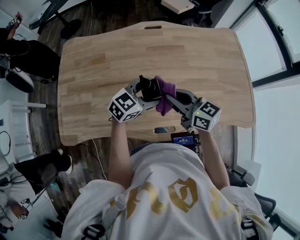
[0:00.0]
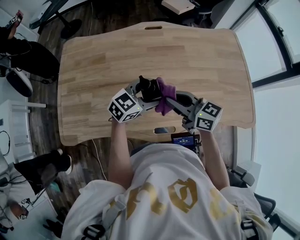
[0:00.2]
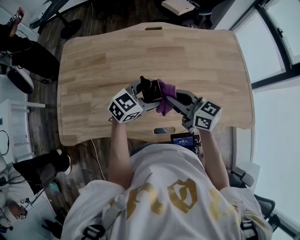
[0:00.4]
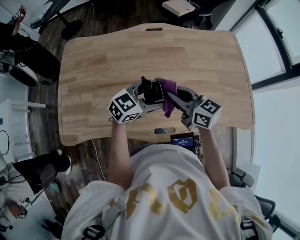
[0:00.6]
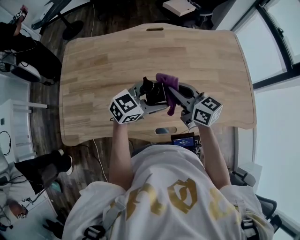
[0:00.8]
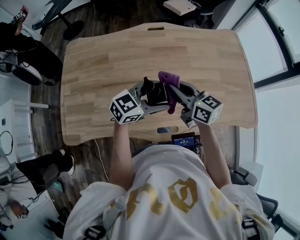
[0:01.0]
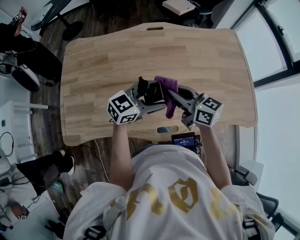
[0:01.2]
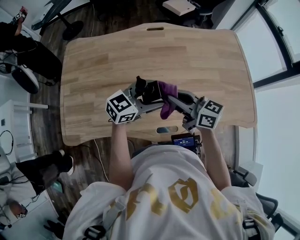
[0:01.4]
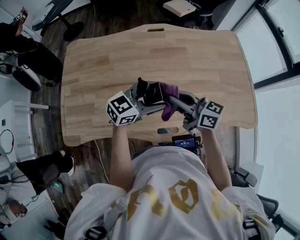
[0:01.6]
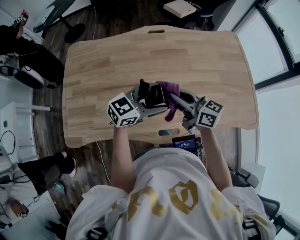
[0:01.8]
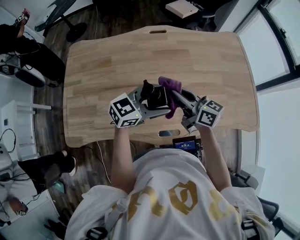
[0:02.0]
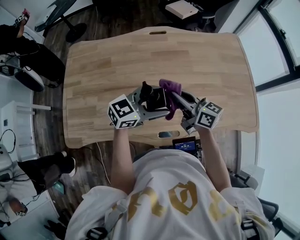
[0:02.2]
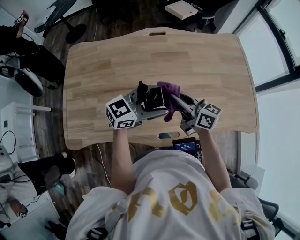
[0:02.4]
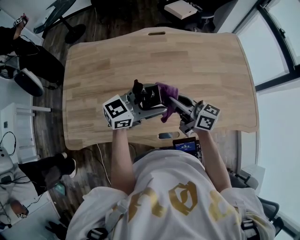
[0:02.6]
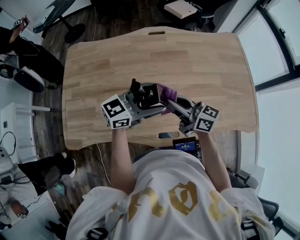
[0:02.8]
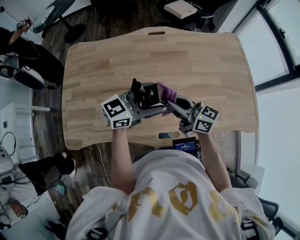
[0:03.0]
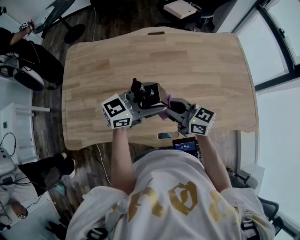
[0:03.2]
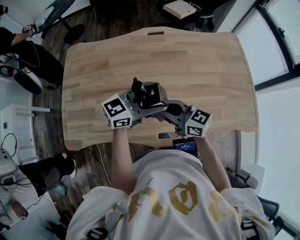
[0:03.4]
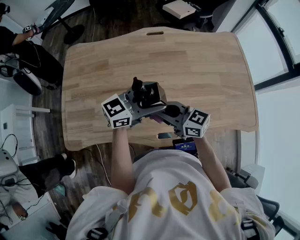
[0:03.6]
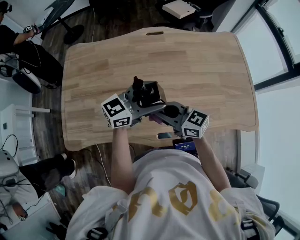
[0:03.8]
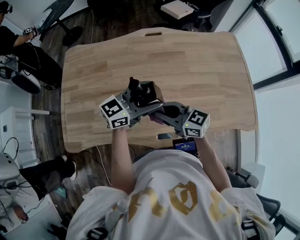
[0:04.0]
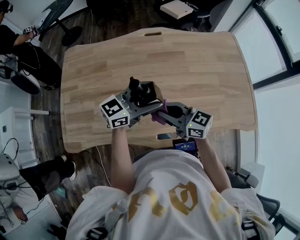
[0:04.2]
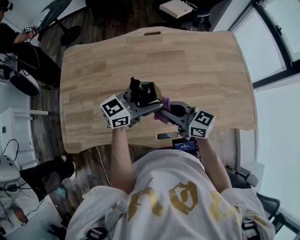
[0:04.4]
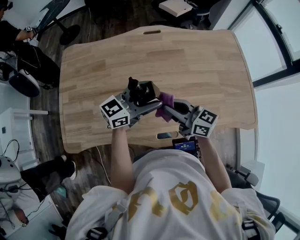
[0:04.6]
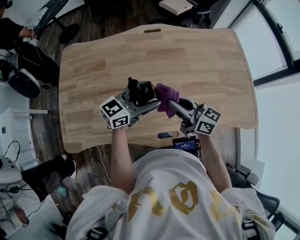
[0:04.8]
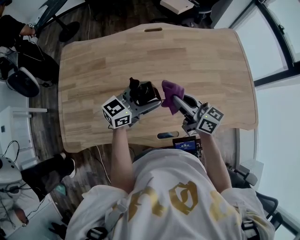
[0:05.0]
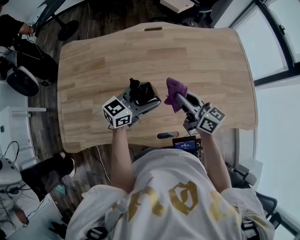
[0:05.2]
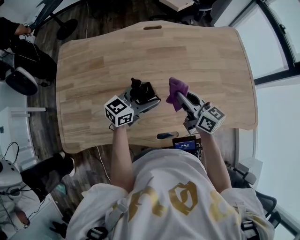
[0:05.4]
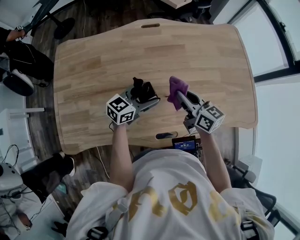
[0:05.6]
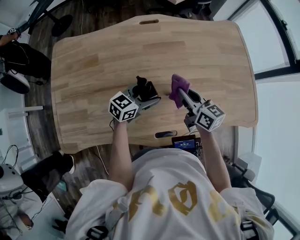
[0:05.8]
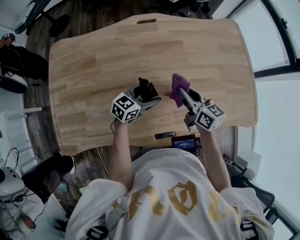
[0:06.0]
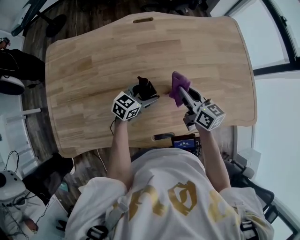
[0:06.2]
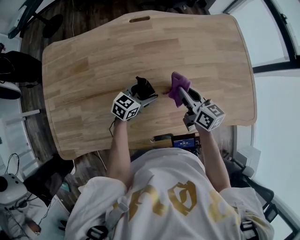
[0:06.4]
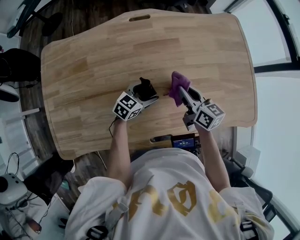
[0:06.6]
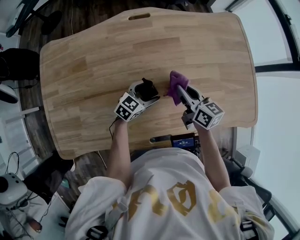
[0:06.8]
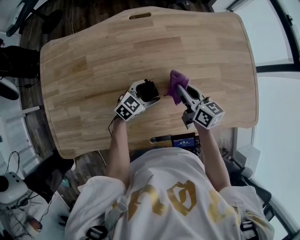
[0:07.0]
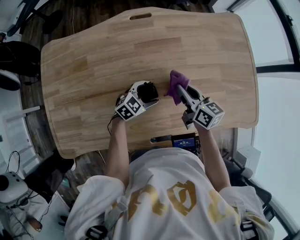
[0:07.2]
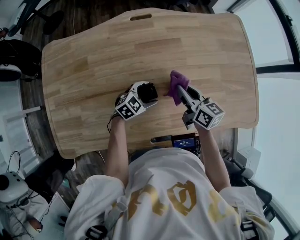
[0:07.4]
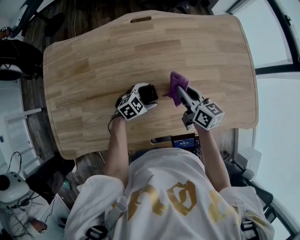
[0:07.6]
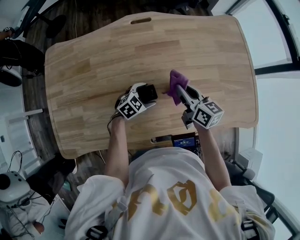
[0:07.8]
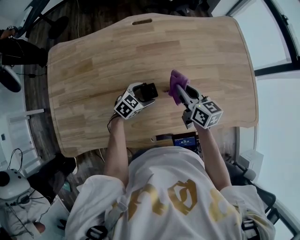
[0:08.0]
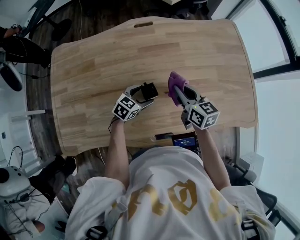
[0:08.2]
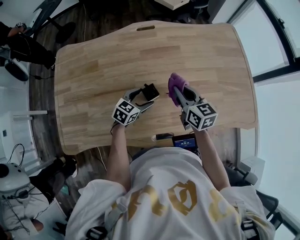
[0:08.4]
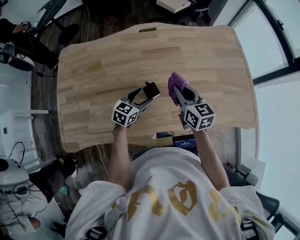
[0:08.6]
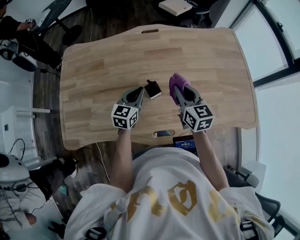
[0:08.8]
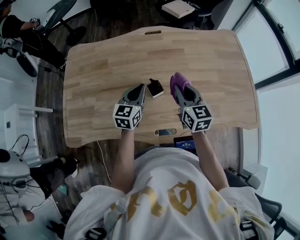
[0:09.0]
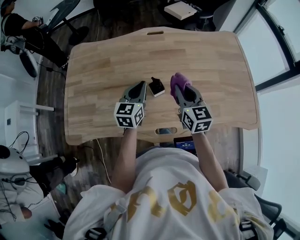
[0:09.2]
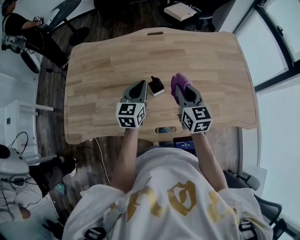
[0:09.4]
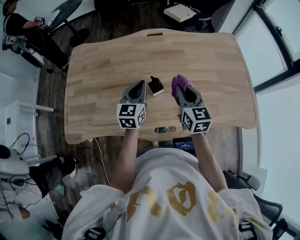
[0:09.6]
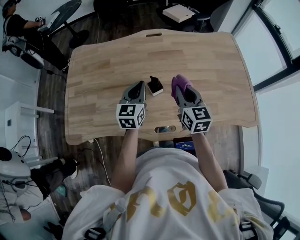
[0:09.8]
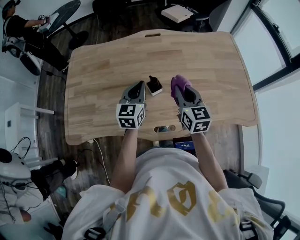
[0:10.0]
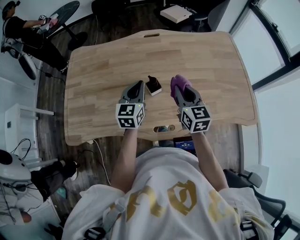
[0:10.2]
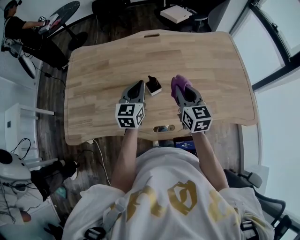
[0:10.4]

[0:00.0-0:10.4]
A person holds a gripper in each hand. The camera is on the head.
0:00.0 to 0:01.4: The grippers move only a little.
0:01.4 to 0:03.0: There are only small adjustments of the grippers.
0:04.4 to 0:06.0: The left gripper moves downward, roughly 15 cm, and rotates about 20 degrees. Meanwhile the right gripper ends up approximately 15 cm from where it was, and changes its angle by approximately 30 degrees.
0:06.0 to 0:07.4: The left gripper shifts approximately 10 cm downward, and changes its angle by roughly 30 degrees.
0:07.4 to 0:09.0: The right gripper heads upward and backward, covering some 10 cm, and rotates roughly 30 degrees. The left gripper moves upward and to the left, roughly 20 cm, rotates approximately 50 degrees, and closes up.
0:09.0 to 0:10.4: The left gripper shifts by approximately 5 cm.

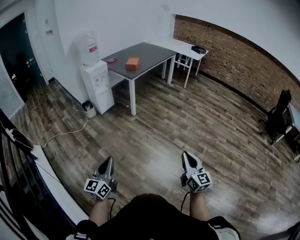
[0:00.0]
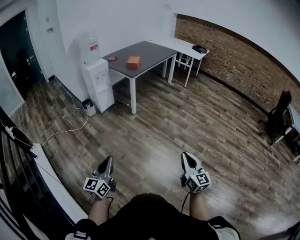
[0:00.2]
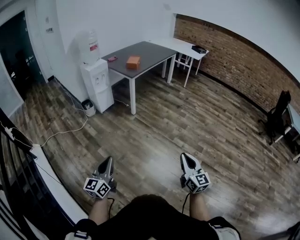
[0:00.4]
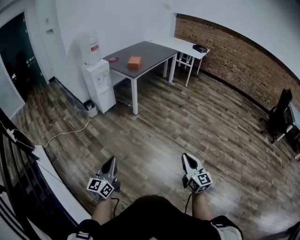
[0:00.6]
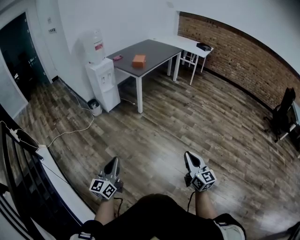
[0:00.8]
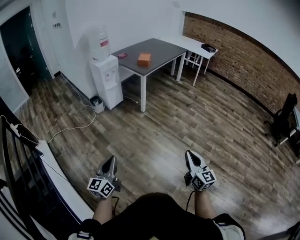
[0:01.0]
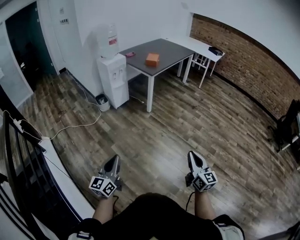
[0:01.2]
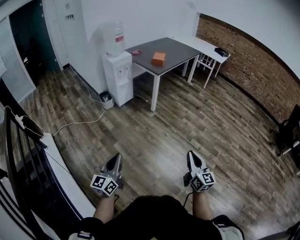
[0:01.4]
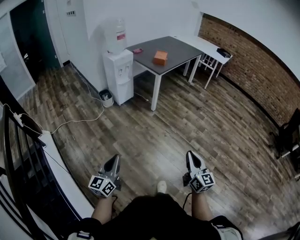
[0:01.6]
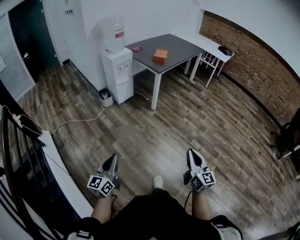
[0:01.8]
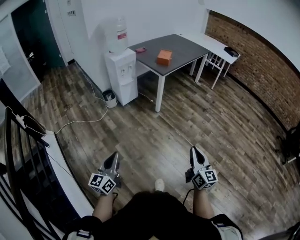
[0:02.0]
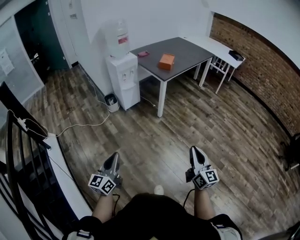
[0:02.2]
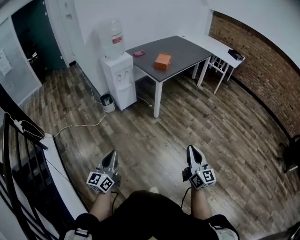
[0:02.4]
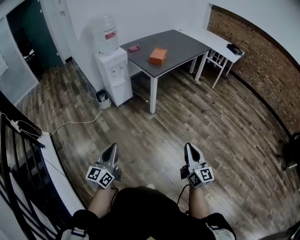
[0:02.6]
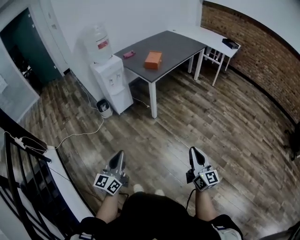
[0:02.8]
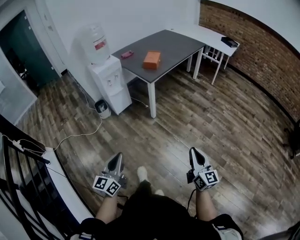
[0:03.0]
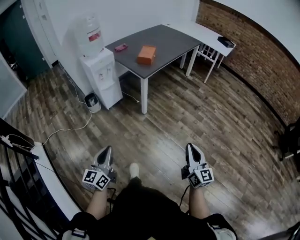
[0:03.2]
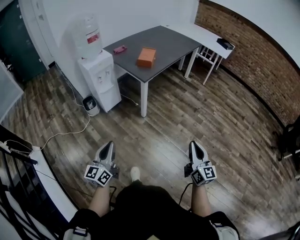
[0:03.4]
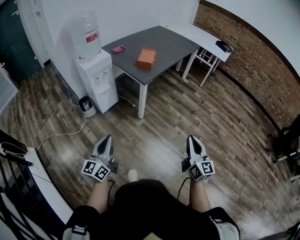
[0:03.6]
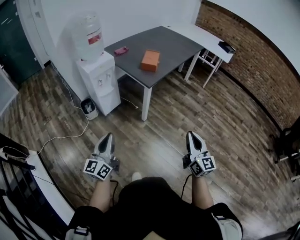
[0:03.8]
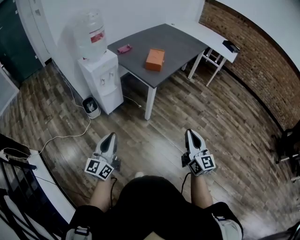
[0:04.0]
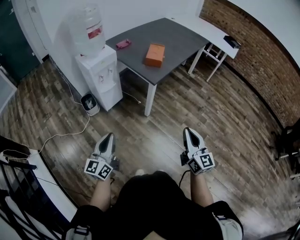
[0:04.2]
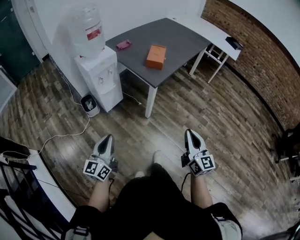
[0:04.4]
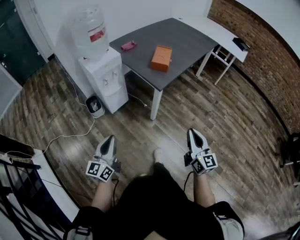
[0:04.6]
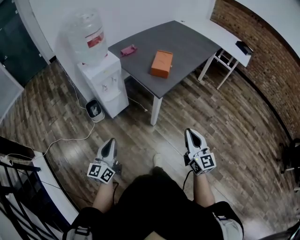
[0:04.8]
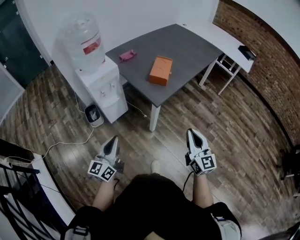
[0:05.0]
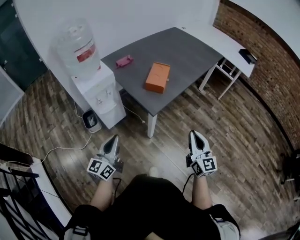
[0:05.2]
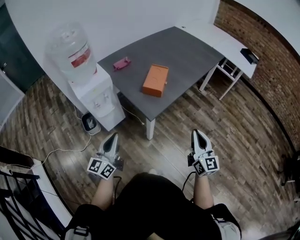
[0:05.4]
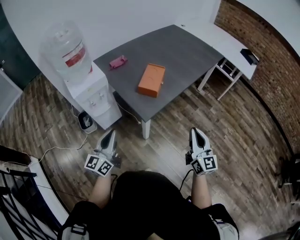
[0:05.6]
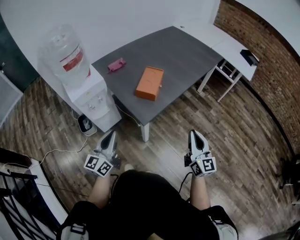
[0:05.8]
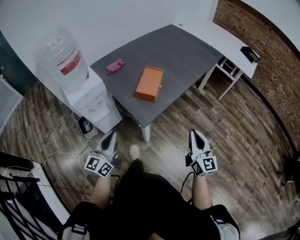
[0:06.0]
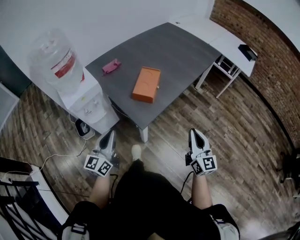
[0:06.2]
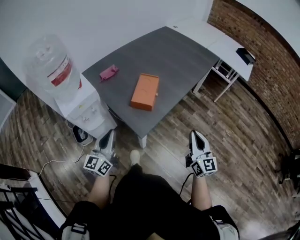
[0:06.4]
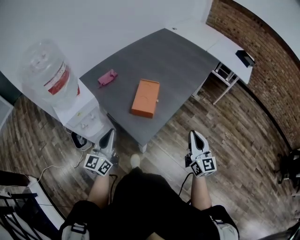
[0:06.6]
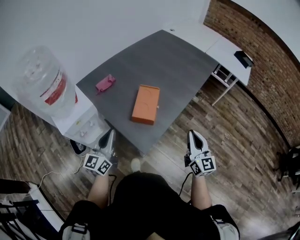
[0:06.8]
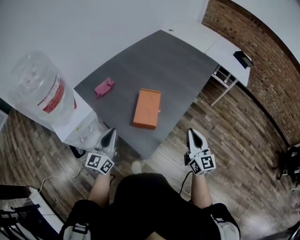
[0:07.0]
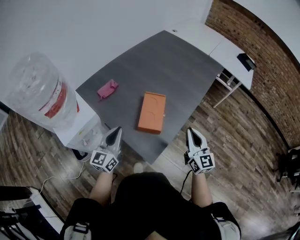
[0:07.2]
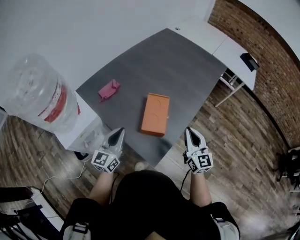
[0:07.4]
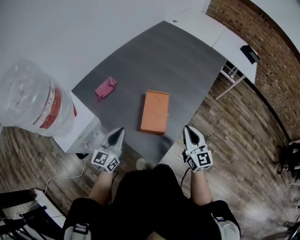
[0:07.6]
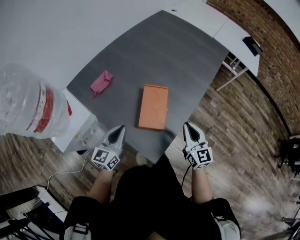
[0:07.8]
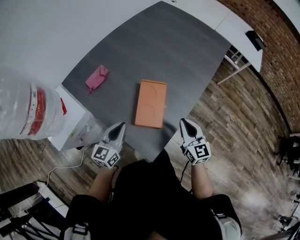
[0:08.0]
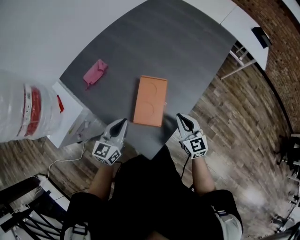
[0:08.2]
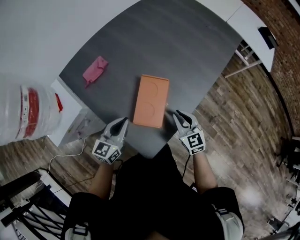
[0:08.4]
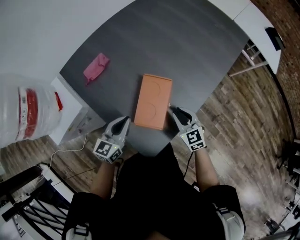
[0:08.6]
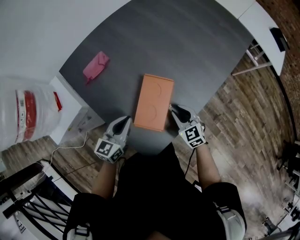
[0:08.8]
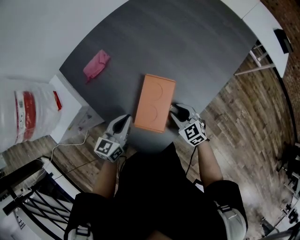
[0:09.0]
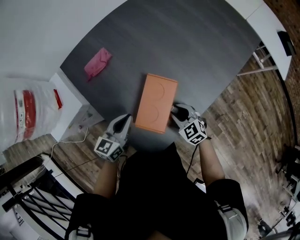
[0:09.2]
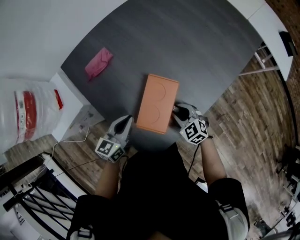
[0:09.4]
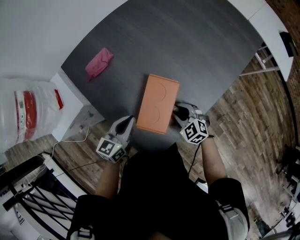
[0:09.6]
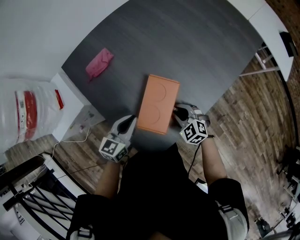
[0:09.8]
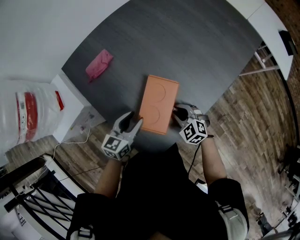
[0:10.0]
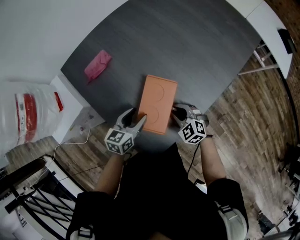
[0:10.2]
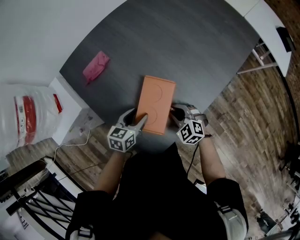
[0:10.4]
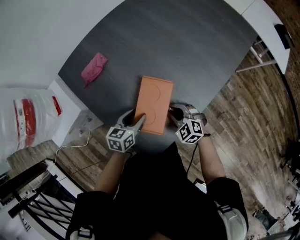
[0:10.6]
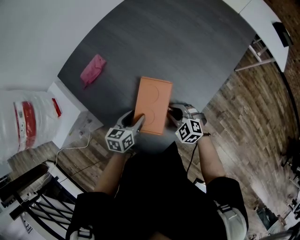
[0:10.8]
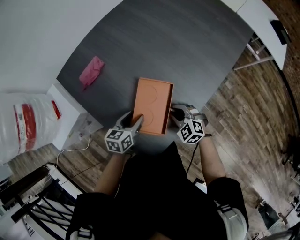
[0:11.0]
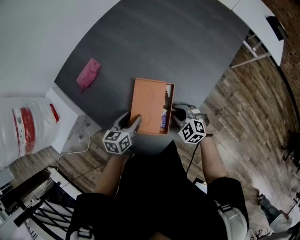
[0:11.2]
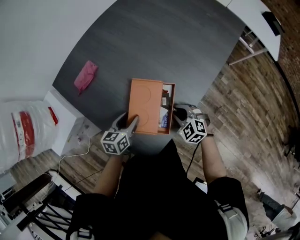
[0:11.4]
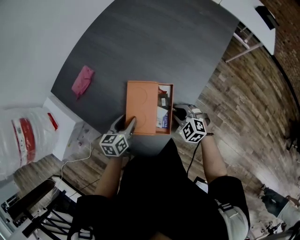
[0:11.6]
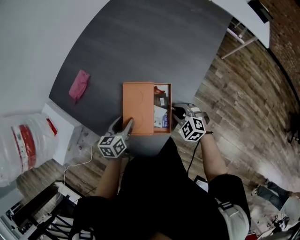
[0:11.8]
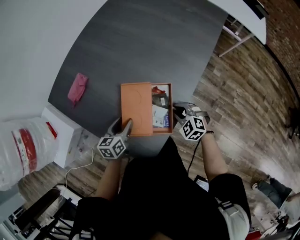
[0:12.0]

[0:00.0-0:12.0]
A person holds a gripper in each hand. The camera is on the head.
0:00.0 to 0:01.6: The left gripper moves to the left, approximately 10 cm; the right gripper travels to the left and forward by about 15 cm.
0:01.6 to 0:03.0: The two grippers go approximately 20 cm forward and to the right.
0:03.0 to 0:04.4: The two grippers go approximately 25 cm forward and to the left.
0:04.4 to 0:06.0: Both grippers travel together forward and to the right, about 30 cm.
0:06.0 to 0:07.6: The right gripper heads forward and to the left, covering roughly 25 cm. The left gripper moves forward, some 25 cm.
0:07.6 to 0:09.0: The right gripper shifts approximately 20 cm downward and forward, angles its fingers downward, by about 30 degrees, and opens; the left gripper heads downward and to the right, covering approximately 10 cm.
0:09.0 to 0:10.4: The left gripper moves downward, about 5 cm, and opens its fingers.
0:10.4 to 0:12.0: The right gripper shifts approximately 5 cm to the right.

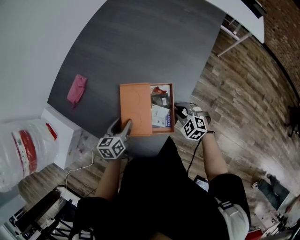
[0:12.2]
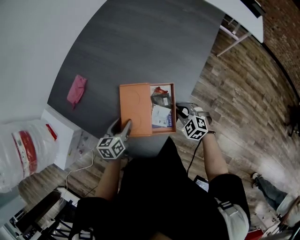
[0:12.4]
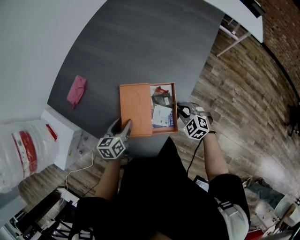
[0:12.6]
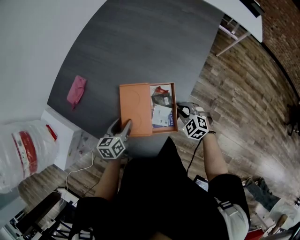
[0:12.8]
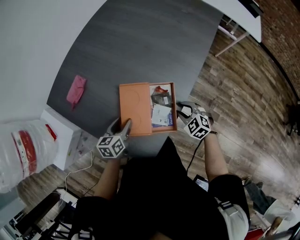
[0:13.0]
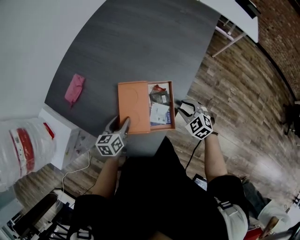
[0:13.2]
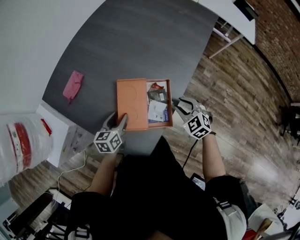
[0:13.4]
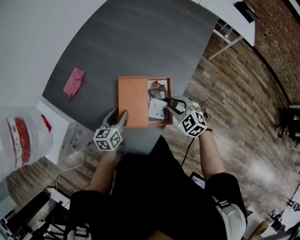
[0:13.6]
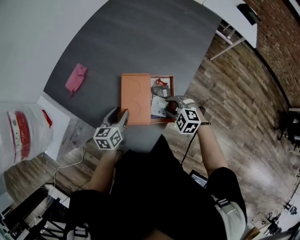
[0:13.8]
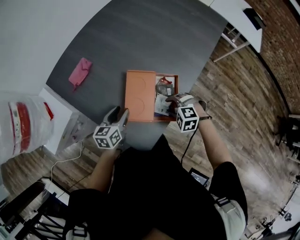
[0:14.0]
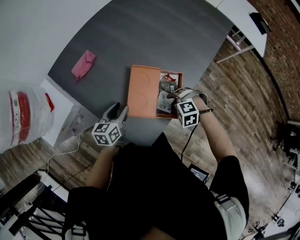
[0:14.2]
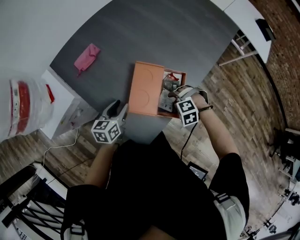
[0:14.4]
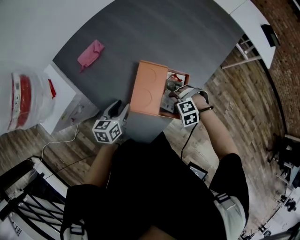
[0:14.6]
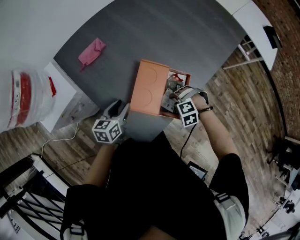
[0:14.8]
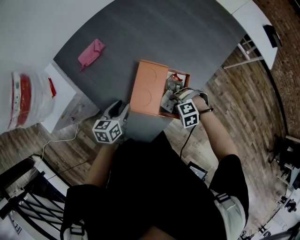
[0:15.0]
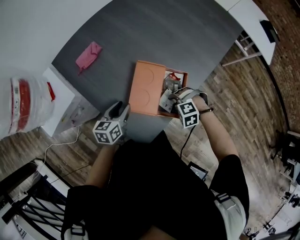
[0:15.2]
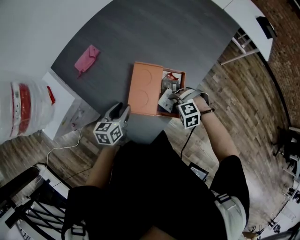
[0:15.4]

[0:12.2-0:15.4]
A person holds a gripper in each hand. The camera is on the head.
0:12.2 to 0:13.8: The right gripper ends up about 5 cm from where it was.
0:13.8 to 0:15.4: The right gripper swivels roughly 40 degrees.
